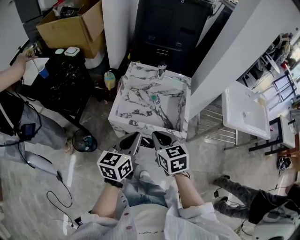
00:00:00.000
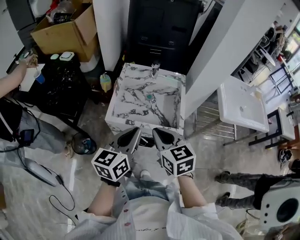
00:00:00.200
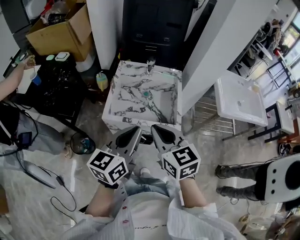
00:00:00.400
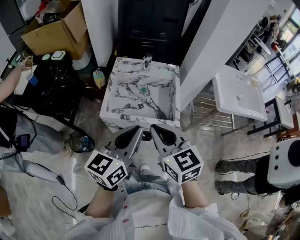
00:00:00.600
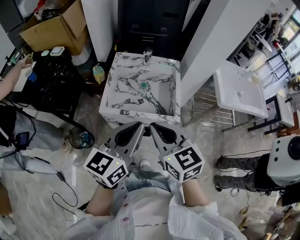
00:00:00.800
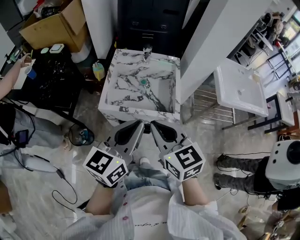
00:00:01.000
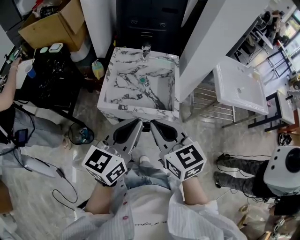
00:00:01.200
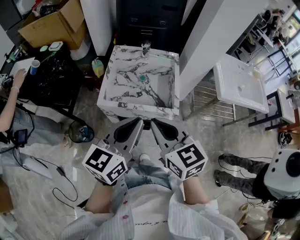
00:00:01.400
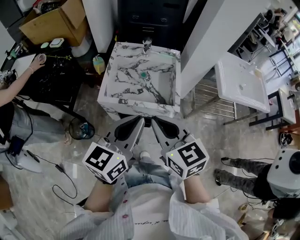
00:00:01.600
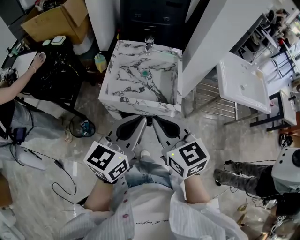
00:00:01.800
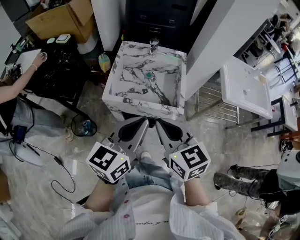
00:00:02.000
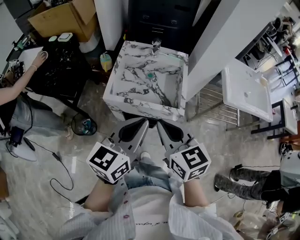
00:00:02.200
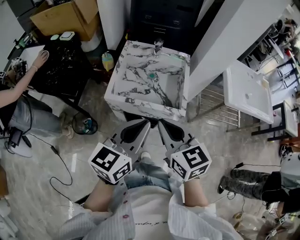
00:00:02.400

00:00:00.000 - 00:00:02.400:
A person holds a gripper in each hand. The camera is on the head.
00:00:00.000 - 00:00:01.200: The right gripper moves upward and backward, some 10 cm. The left gripper travels upward and to the right by about 10 cm.
00:00:01.200 - 00:00:02.400: The grippers move only a little.

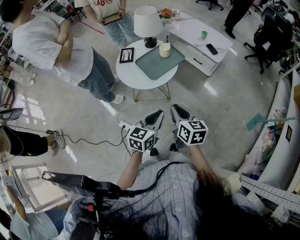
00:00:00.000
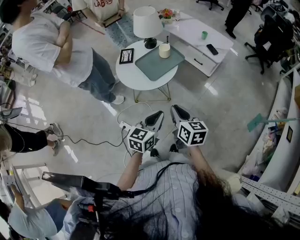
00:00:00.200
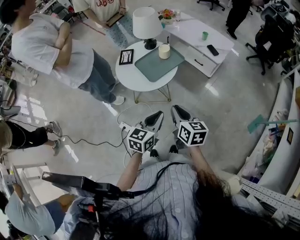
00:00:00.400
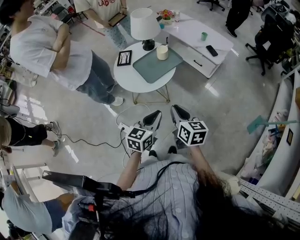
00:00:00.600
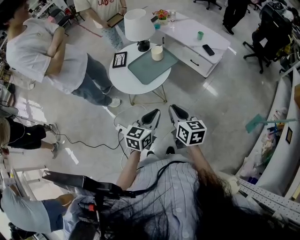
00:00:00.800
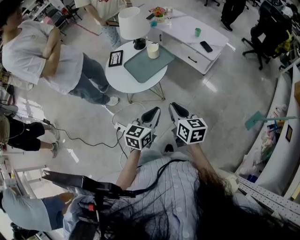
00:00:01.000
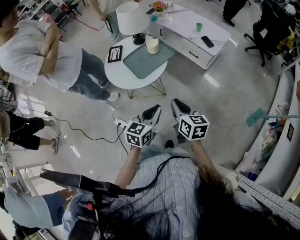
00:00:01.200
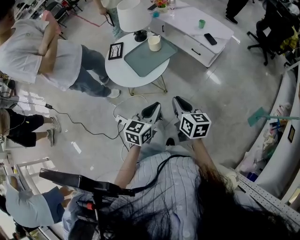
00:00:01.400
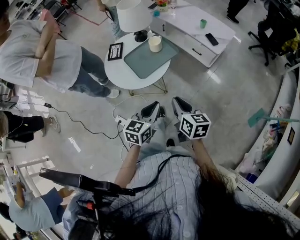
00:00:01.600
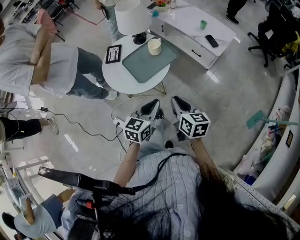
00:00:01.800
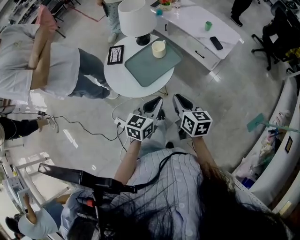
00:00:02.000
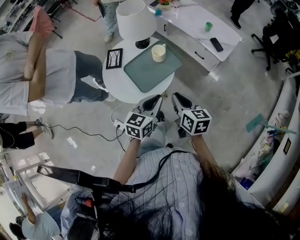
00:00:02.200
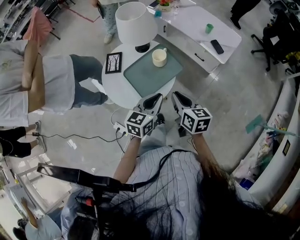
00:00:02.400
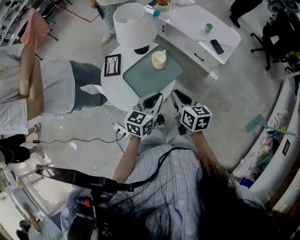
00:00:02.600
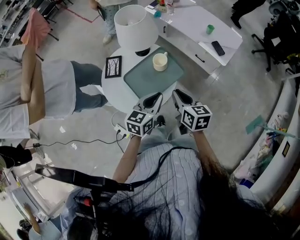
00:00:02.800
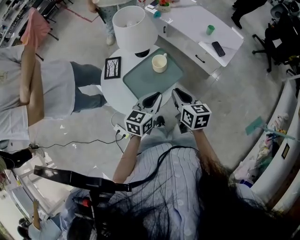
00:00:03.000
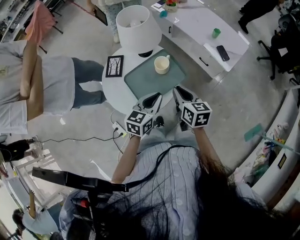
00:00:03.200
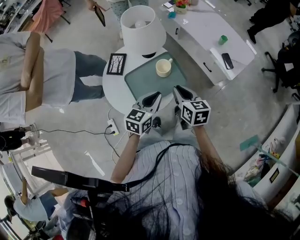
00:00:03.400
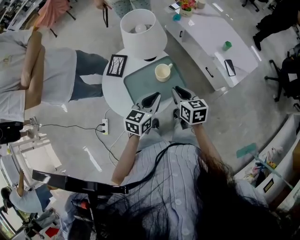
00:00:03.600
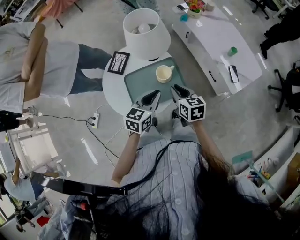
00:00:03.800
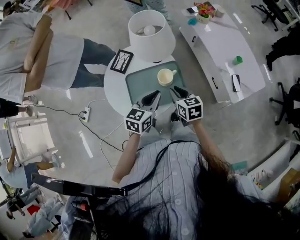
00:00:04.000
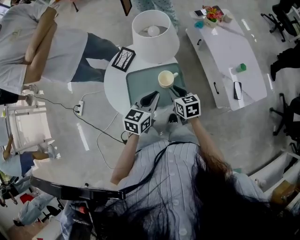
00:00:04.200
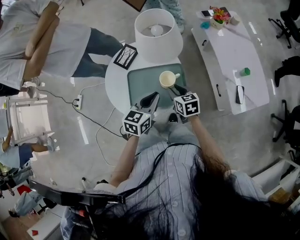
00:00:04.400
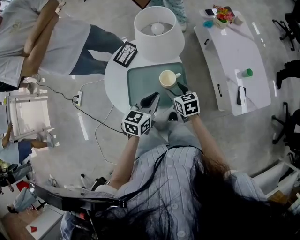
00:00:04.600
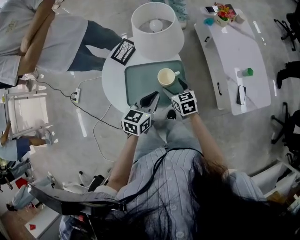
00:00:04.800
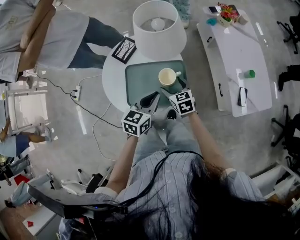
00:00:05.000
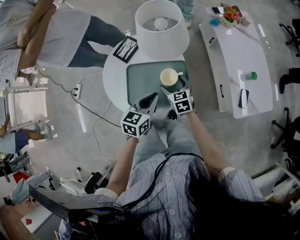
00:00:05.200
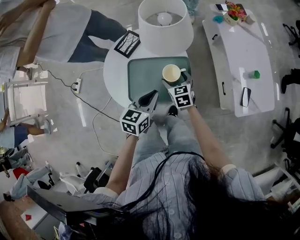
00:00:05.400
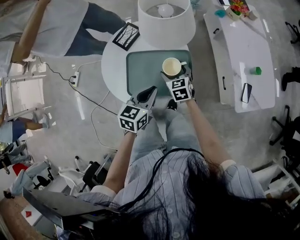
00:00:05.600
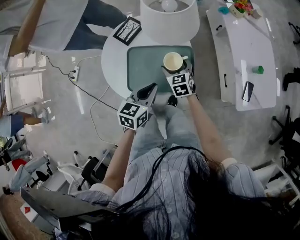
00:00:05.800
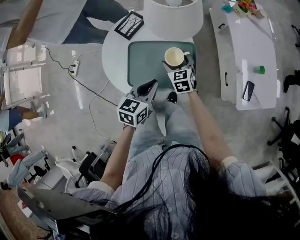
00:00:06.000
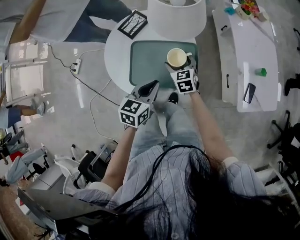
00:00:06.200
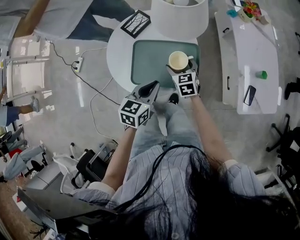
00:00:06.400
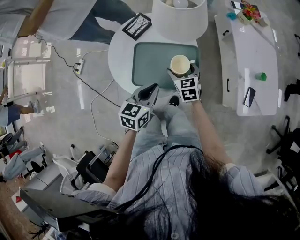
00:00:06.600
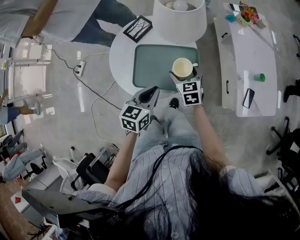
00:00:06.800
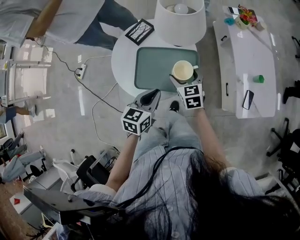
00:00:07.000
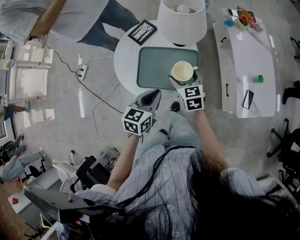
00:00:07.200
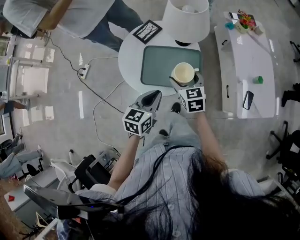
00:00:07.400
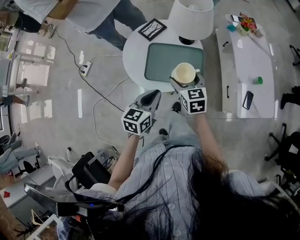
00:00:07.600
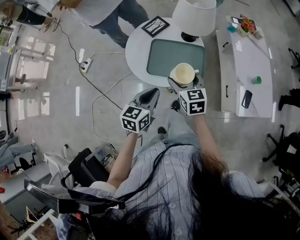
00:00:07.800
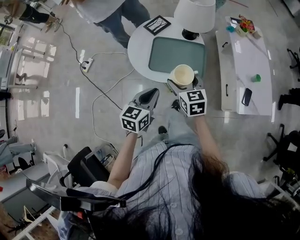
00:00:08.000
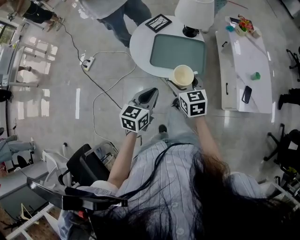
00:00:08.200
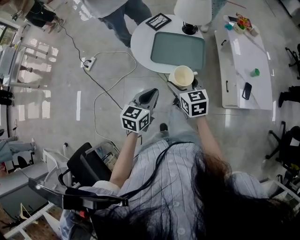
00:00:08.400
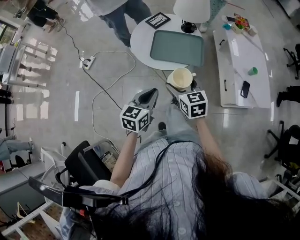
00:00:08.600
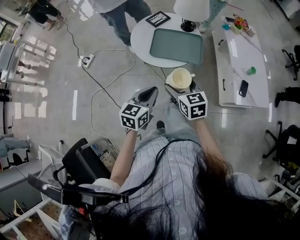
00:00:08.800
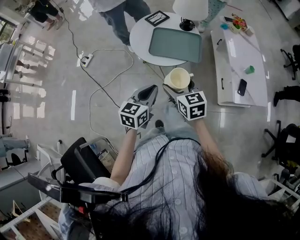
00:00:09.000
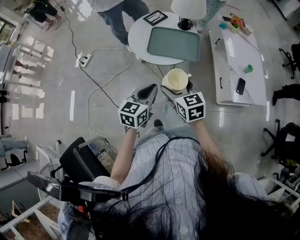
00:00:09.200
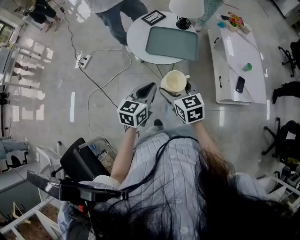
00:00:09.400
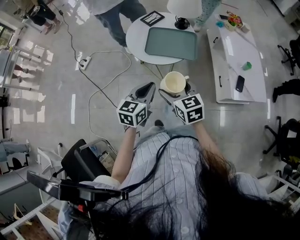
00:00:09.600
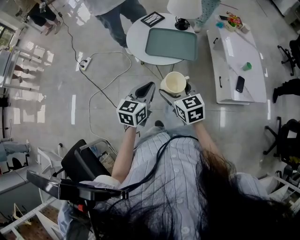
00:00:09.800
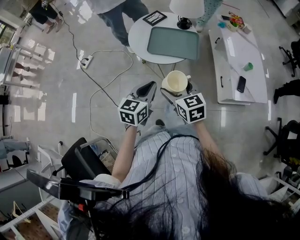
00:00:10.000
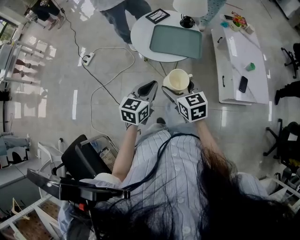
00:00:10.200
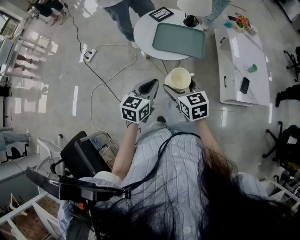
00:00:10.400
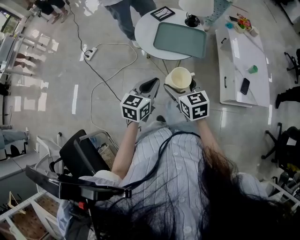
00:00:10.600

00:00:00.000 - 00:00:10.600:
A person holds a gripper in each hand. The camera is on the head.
00:00:00.000 - 00:00:01.600: Both grippers travel together forward and to the right, some 10 cm.
00:00:01.600 - 00:00:03.000: Both grippers travel together forward, about 25 cm.
00:00:03.000 - 00:00:04.600: The left gripper shifts by some 10 cm, and swivels about 30 degrees. Meanwhile the right gripper changes place by some 20 cm, turns by some 50 degrees, and opens its fingers.
00:00:04.600 - 00:00:06.000: The right gripper travels forward by approximately 5 cm, changes its angle by some 20 degrees, and opens up. Meanwhile the left gripper changes place by about 5 cm.
00:00:06.000 - 00:00:07.600: The right gripper moves upward and backward, roughly 20 cm. Meanwhile the left gripper moves backward and upward, approximately 15 cm.
00:00:07.600 - 00:00:09.000: Both grippers move backward, about 20 cm.
00:00:09.000 - 00:00:10.600: The grippers move only a little.

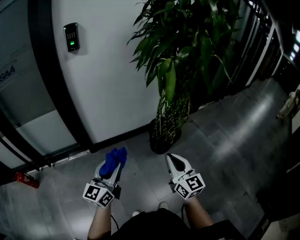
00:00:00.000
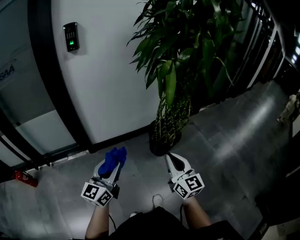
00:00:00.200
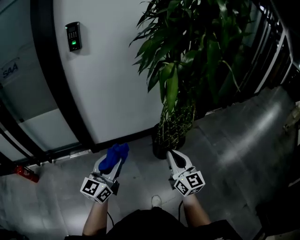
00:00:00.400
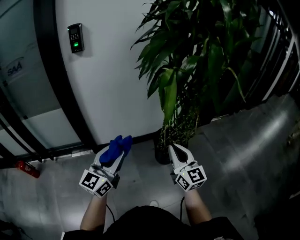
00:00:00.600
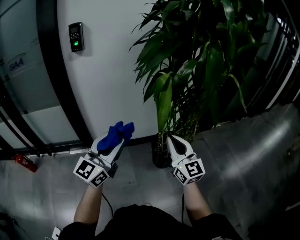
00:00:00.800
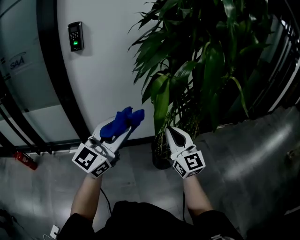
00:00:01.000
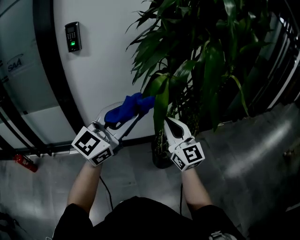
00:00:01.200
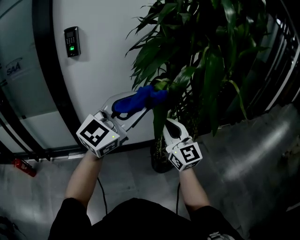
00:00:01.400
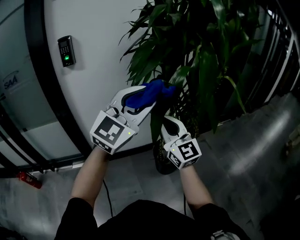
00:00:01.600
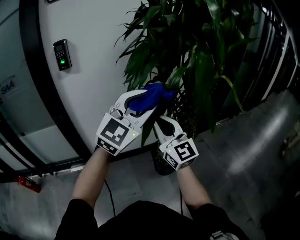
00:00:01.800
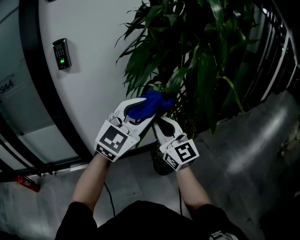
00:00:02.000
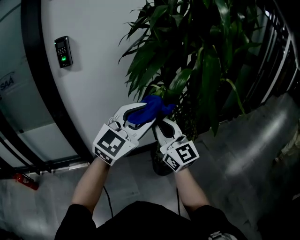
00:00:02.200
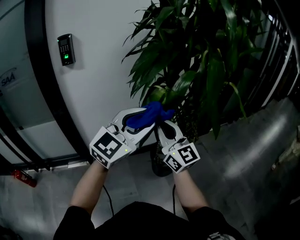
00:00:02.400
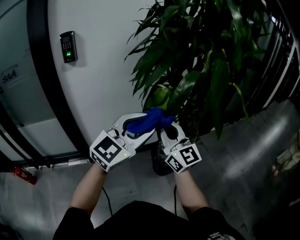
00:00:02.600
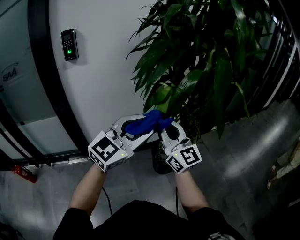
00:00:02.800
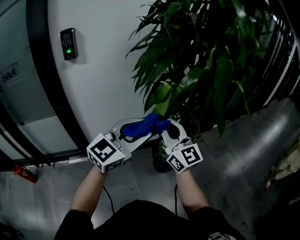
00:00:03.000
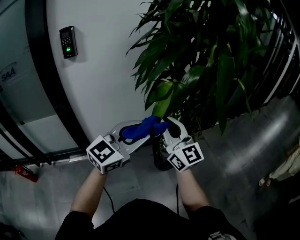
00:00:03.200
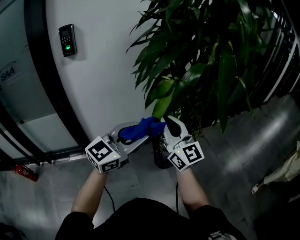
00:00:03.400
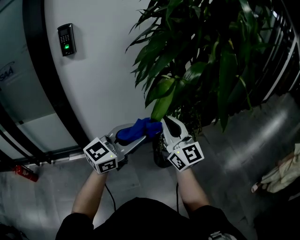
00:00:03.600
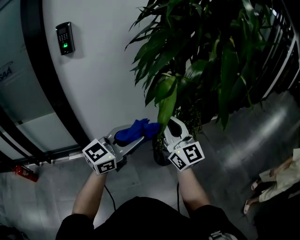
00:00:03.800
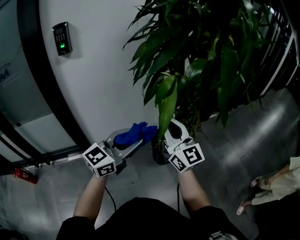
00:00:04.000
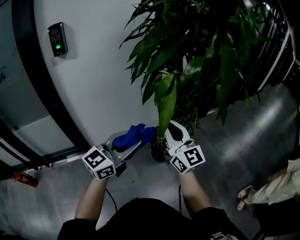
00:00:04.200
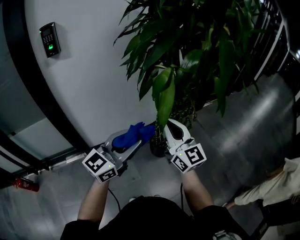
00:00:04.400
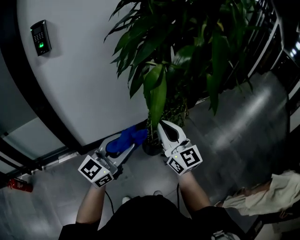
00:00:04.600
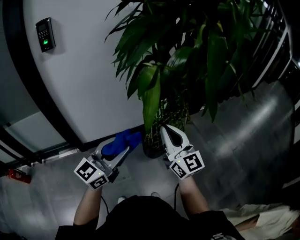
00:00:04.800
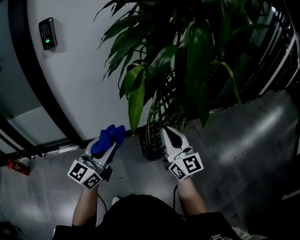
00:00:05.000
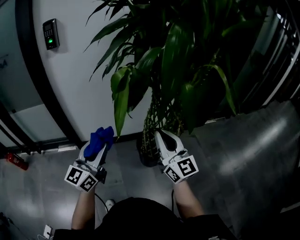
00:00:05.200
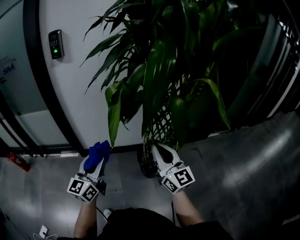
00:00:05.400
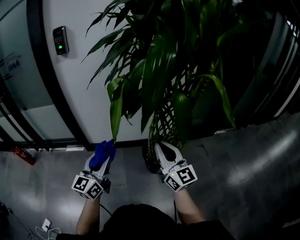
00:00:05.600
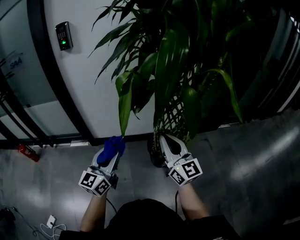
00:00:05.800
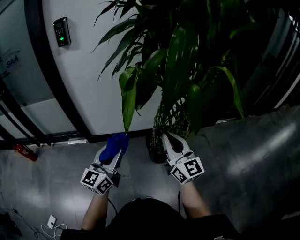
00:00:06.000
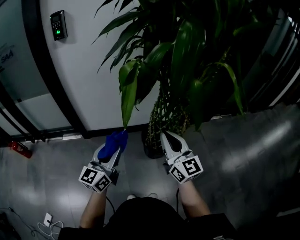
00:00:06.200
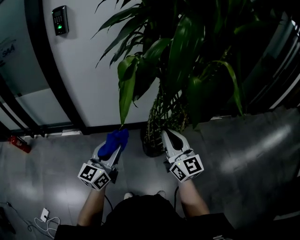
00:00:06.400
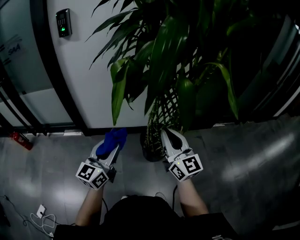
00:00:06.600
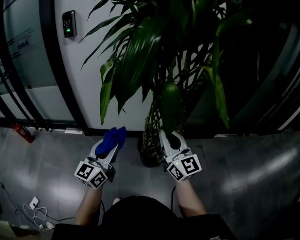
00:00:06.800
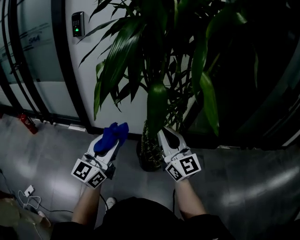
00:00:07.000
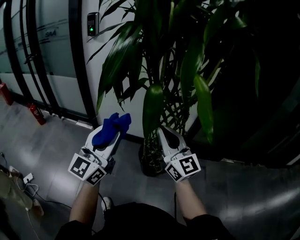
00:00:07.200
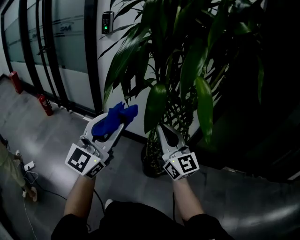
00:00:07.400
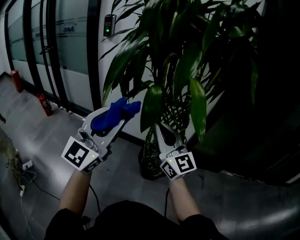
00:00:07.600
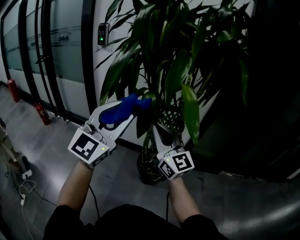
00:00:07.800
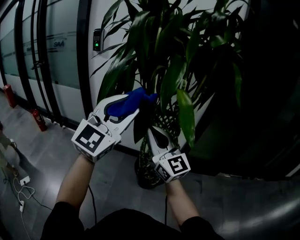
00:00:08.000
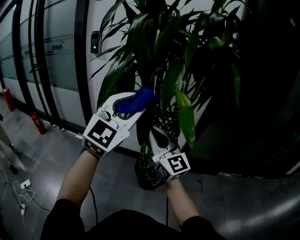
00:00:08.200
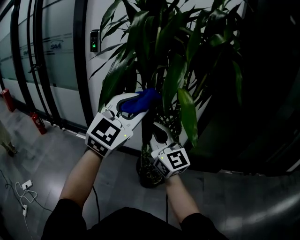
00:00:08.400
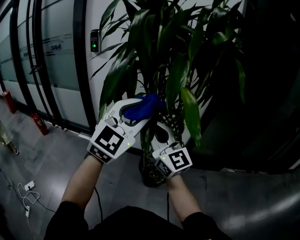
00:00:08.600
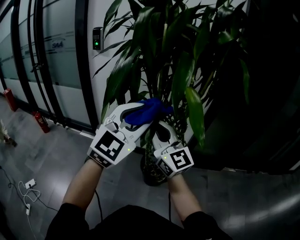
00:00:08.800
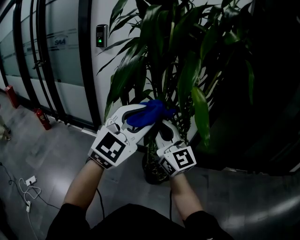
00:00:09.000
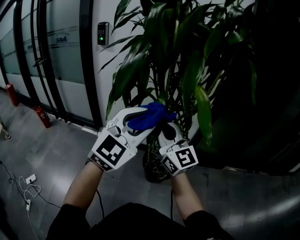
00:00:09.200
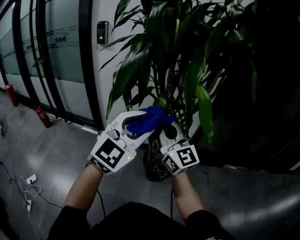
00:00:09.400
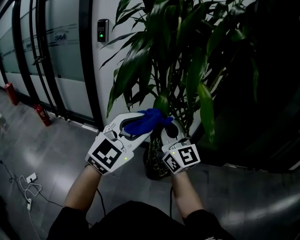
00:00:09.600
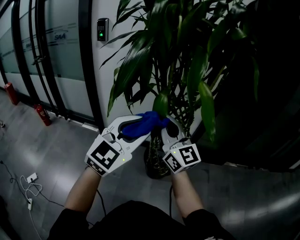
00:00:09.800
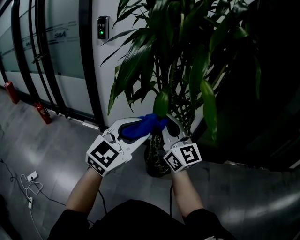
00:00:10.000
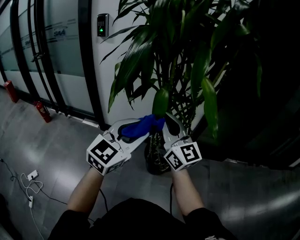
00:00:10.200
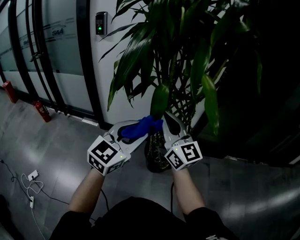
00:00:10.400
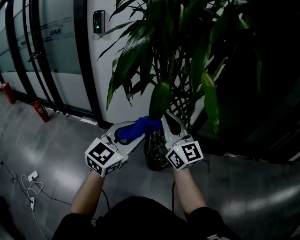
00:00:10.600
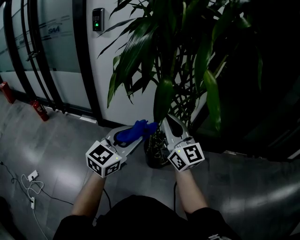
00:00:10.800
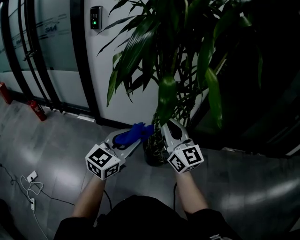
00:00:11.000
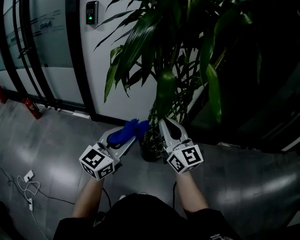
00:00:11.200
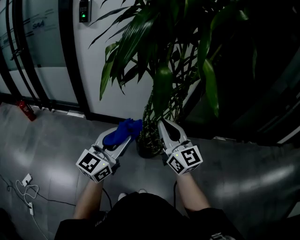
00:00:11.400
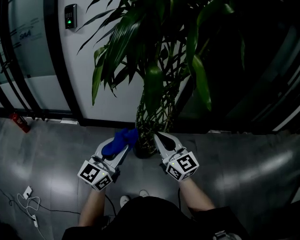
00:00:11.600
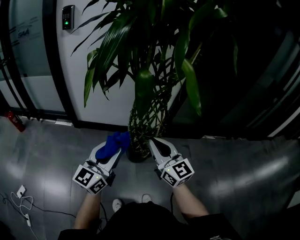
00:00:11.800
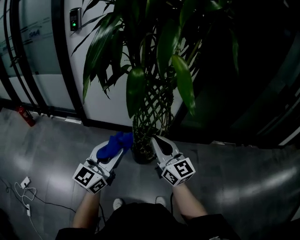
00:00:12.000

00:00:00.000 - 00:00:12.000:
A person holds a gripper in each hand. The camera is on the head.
00:00:00.000 - 00:00:01.600: The right gripper heads forward and upward, covering roughly 30 cm, and changes its angle by some 20 degrees; the left gripper goes roughly 40 cm upward, forward and to the right, and twists about 40 degrees clockwise, seen from behind.
00:00:01.600 - 00:00:03.000: The left gripper travels downward by about 10 cm, and changes its angle by roughly 20 degrees.
00:00:03.000 - 00:00:04.400: Both grippers move downward, roughly 5 cm.
00:00:04.400 - 00:00:06.000: The right gripper shifts by about 15 cm. The left gripper travels downward by about 5 cm, and rotates approximately 40 degrees.
00:00:06.000 - 00:00:07.600: The right gripper heads to the right and upward, covering some 15 cm, and turns by approximately 30 degrees, while the left gripper goes some 30 cm upward, to the right and backward, and swivels approximately 40 degrees.
00:00:07.600 - 00:00:09.000: The right gripper moves approximately 5 cm, while the left gripper moves to the right, approximately 5 cm, and rotates roughly 20 degrees.
00:00:09.000 - 00:00:10.400: The left gripper moves downward, roughly 10 cm, and swivels about 20 degrees.
00:00:10.400 - 00:00:12.000: The right gripper is displaced downward, to the right and backward by roughly 15 cm. The left gripper shifts about 10 cm downward and backward, and changes its angle by about 20 degrees.
